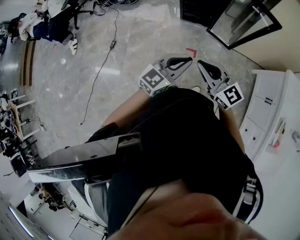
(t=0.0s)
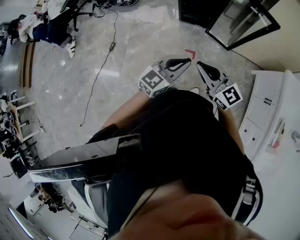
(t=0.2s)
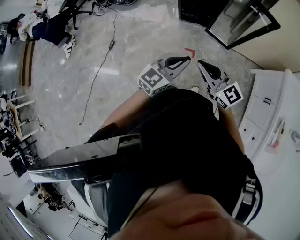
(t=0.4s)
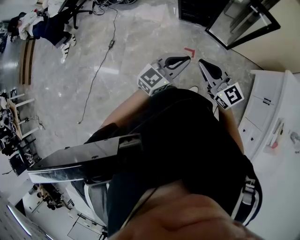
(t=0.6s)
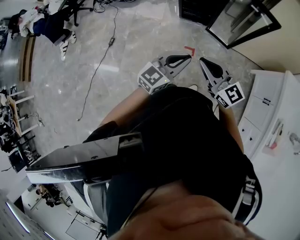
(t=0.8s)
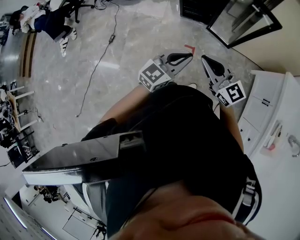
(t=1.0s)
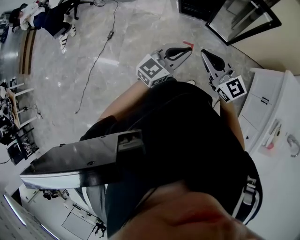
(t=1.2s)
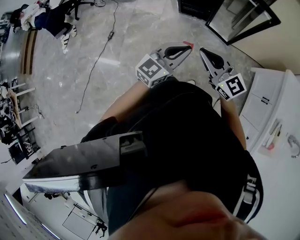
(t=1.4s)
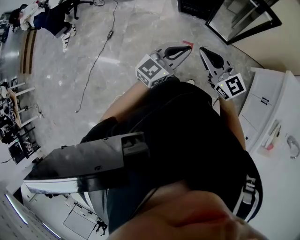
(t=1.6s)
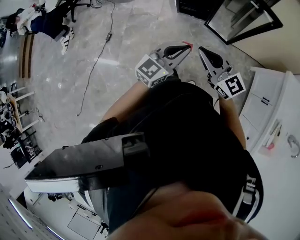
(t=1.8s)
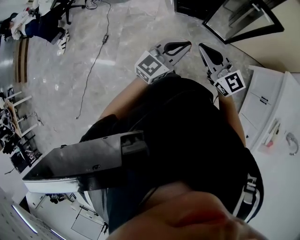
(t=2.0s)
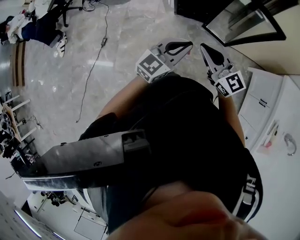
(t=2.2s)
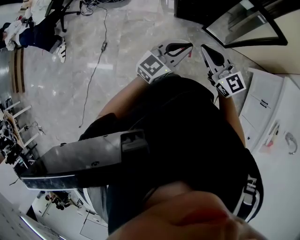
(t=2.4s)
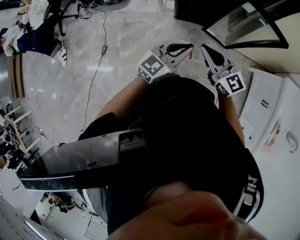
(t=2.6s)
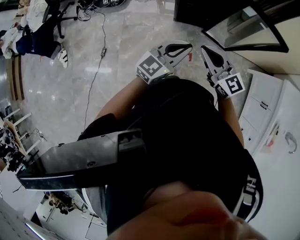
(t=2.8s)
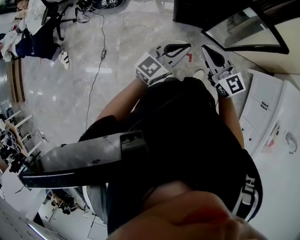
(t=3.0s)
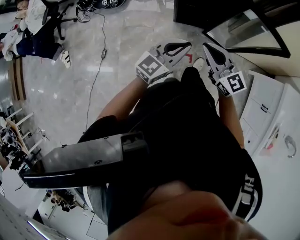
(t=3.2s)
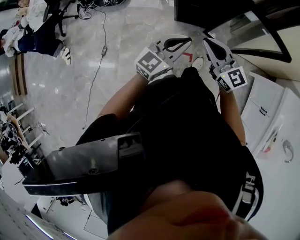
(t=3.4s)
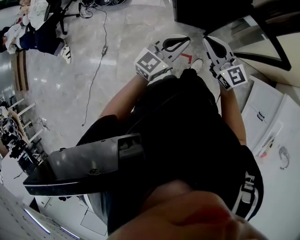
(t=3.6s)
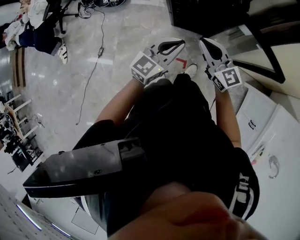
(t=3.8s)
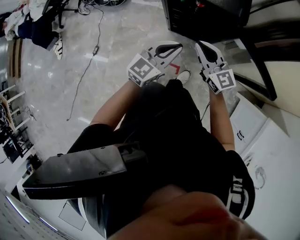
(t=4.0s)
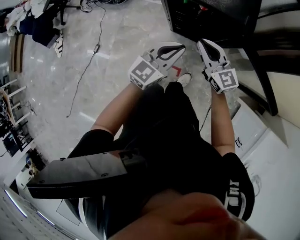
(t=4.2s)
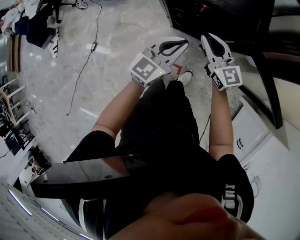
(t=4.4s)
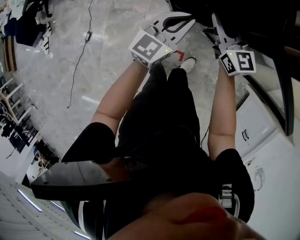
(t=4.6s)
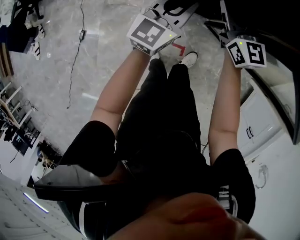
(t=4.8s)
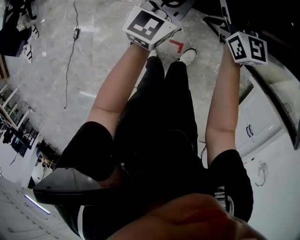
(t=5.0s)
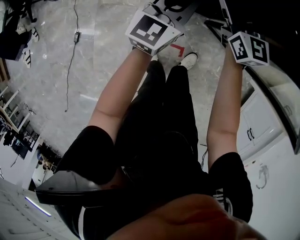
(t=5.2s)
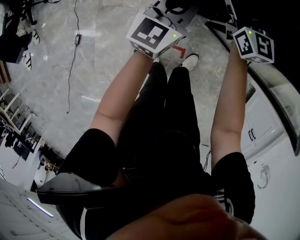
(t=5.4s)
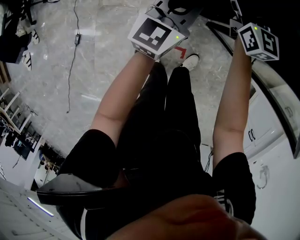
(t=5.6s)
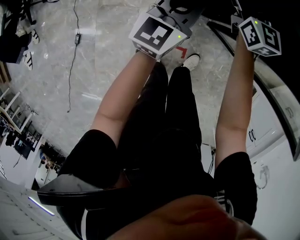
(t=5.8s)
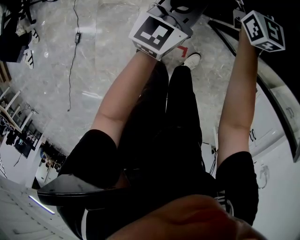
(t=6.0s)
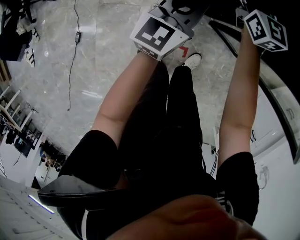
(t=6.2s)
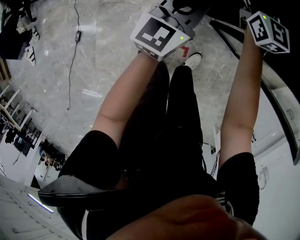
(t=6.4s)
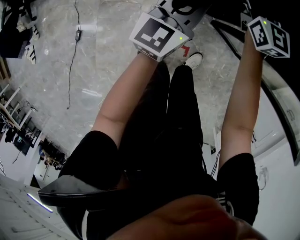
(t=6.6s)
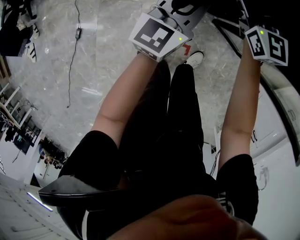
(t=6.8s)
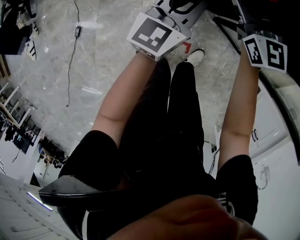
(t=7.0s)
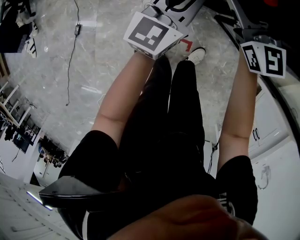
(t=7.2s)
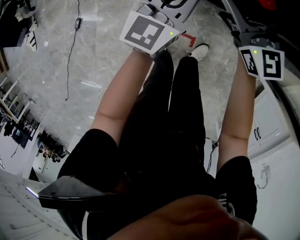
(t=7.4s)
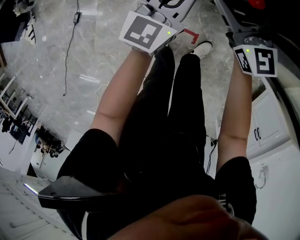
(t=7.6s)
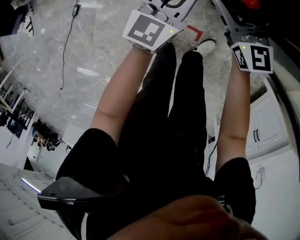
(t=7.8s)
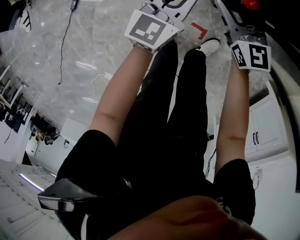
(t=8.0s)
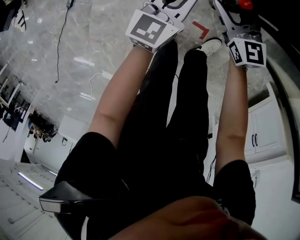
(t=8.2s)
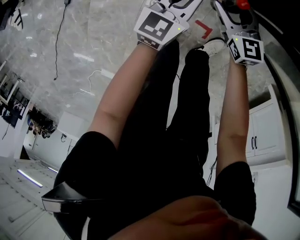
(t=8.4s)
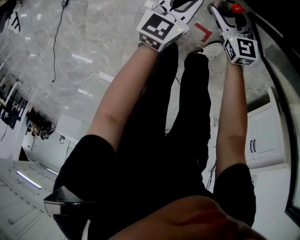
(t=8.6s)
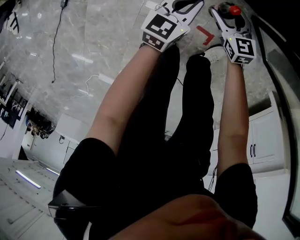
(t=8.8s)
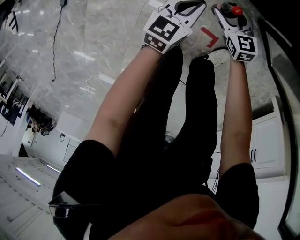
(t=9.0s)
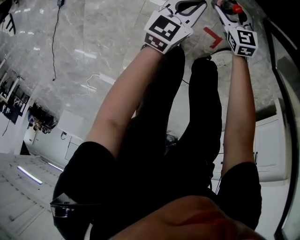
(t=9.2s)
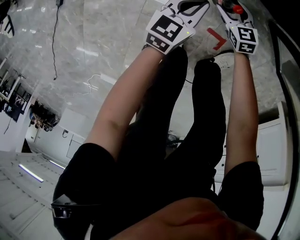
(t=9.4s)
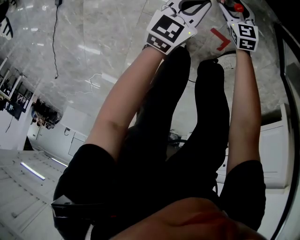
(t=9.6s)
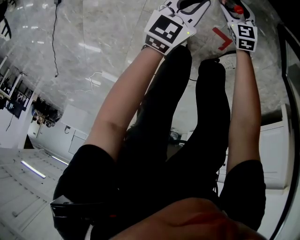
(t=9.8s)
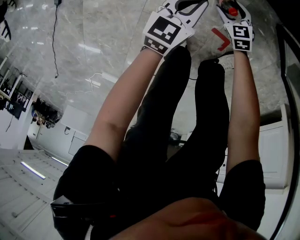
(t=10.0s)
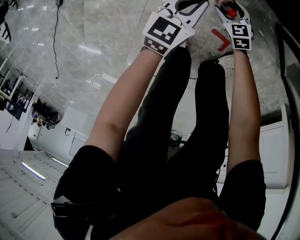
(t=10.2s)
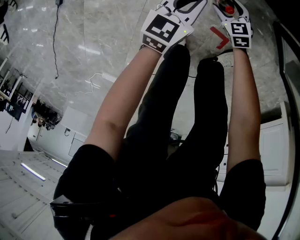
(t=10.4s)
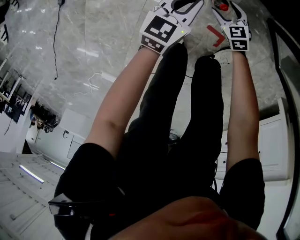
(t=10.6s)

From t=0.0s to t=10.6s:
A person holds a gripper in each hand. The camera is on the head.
From t=0.0s to t=1.6s: Both grippers move to the right, about 10 cm.
From t=1.6s to t=3.0s: Both grippers travel together forward and to the left, approximately 25 cm.
From t=3.0s to t=4.6s: Both grippers move forward and downward, some 40 cm.
From t=4.6s to t=6.0s: The left gripper travels downward and forward by some 10 cm. Meanwhile the right gripper goes approximately 15 cm forward and downward, and opens.
From t=6.0s to t=7.6s: The right gripper goes roughly 20 cm backward and to the left. The left gripper travels to the left, backward and downward by some 15 cm.
From t=7.6s to t=9.0s: The grippers both shift downward by some 40 cm. The right gripper rotates some 30 degrees; the left gripper rotates about 20 degrees.
From t=9.0s to t=10.6s: The left gripper travels downward and back again, some 10 cm each way. Meanwhile the right gripper travels downward by some 10 cm.

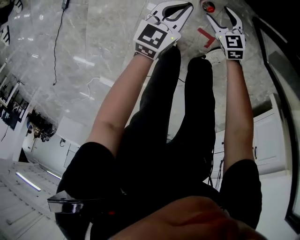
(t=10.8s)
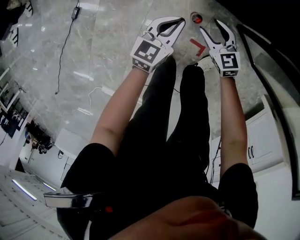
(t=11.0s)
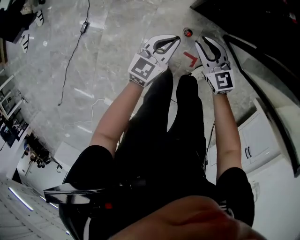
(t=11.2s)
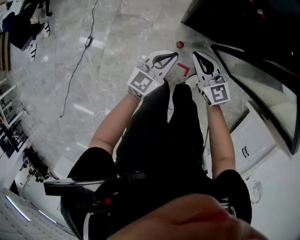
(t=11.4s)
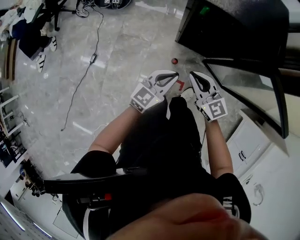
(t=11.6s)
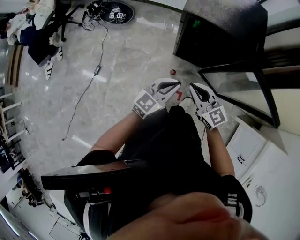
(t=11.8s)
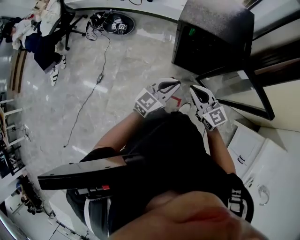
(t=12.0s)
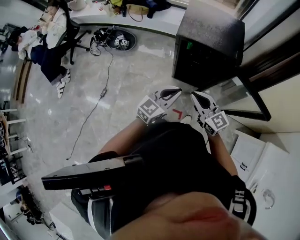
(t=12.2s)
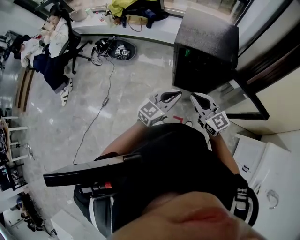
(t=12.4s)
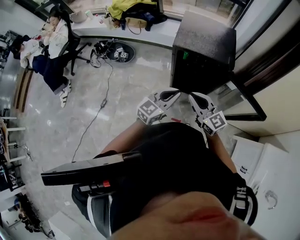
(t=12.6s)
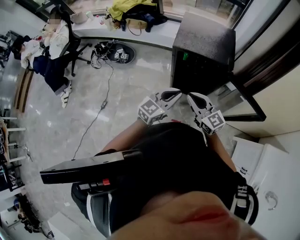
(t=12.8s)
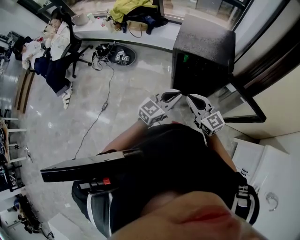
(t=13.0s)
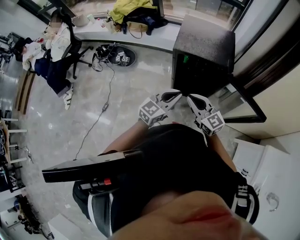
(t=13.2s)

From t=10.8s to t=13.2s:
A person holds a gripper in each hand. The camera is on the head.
From t=10.8s to t=12.0s: Both grippers move upward, roughly 60 cm. The right gripper tips its fingers upward by some 30 degrees, and closes up; the left gripper swivels some 30 degrees.
From t=12.0s to t=13.2s: The grippers both shift upward by approximately 10 cm.

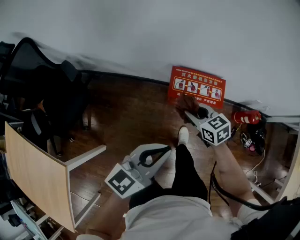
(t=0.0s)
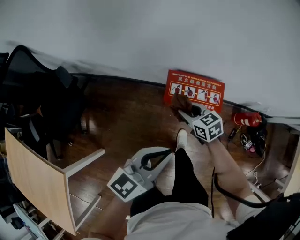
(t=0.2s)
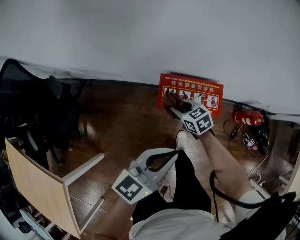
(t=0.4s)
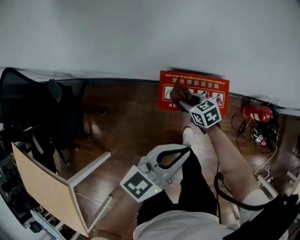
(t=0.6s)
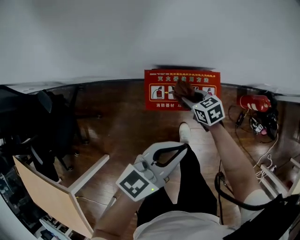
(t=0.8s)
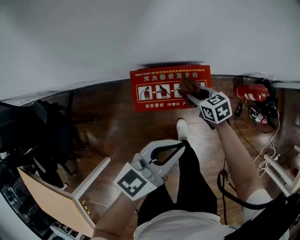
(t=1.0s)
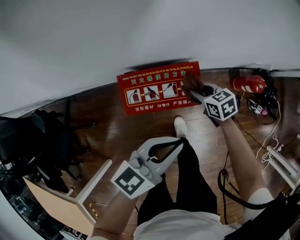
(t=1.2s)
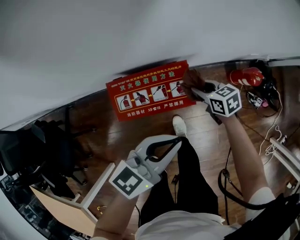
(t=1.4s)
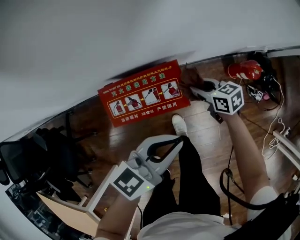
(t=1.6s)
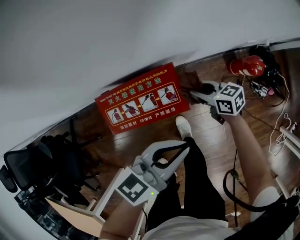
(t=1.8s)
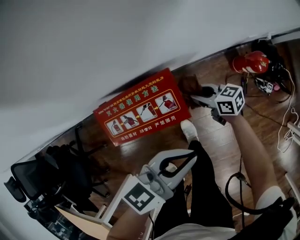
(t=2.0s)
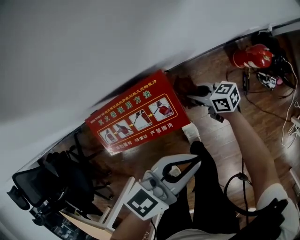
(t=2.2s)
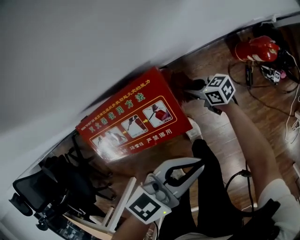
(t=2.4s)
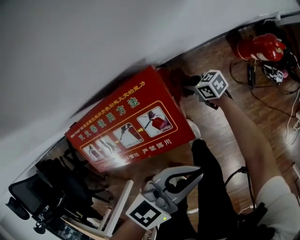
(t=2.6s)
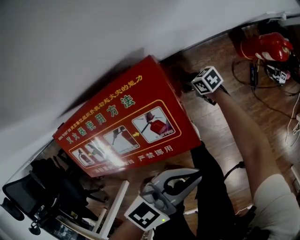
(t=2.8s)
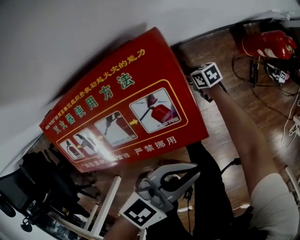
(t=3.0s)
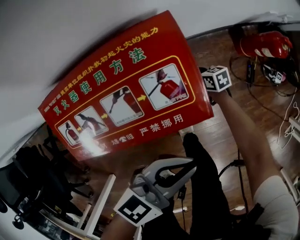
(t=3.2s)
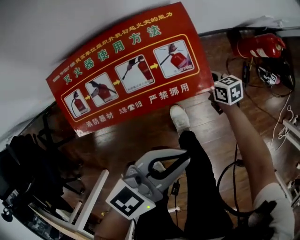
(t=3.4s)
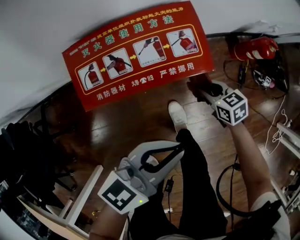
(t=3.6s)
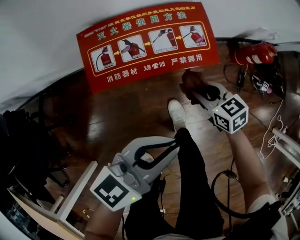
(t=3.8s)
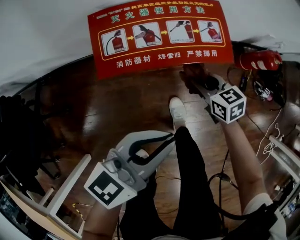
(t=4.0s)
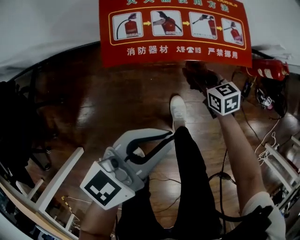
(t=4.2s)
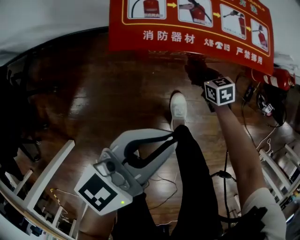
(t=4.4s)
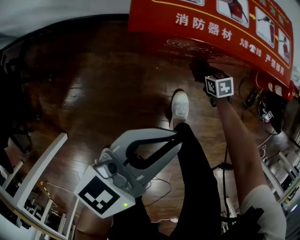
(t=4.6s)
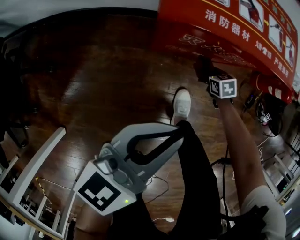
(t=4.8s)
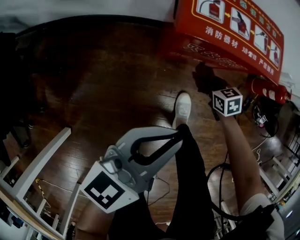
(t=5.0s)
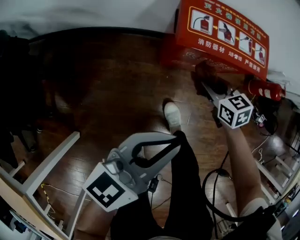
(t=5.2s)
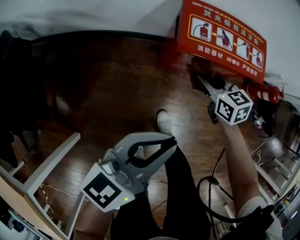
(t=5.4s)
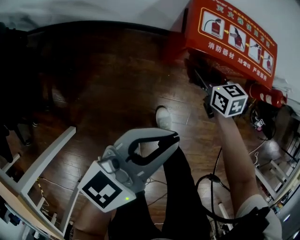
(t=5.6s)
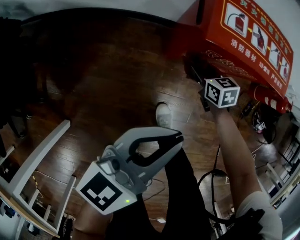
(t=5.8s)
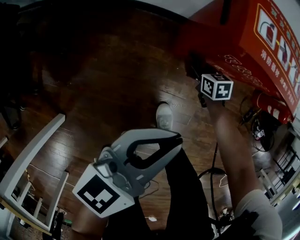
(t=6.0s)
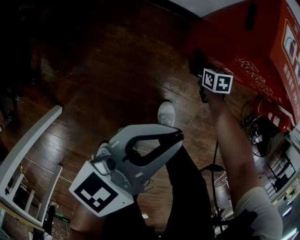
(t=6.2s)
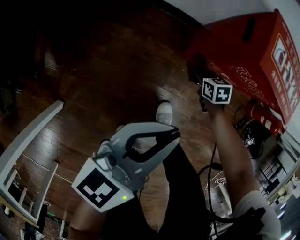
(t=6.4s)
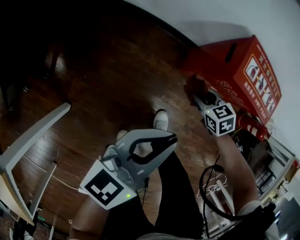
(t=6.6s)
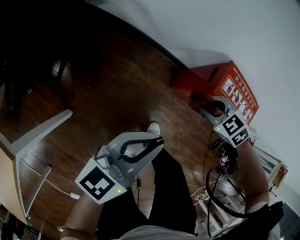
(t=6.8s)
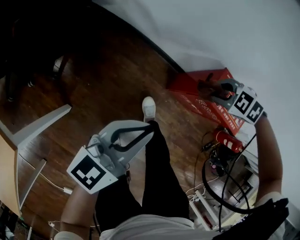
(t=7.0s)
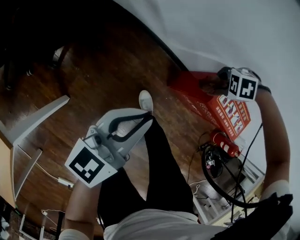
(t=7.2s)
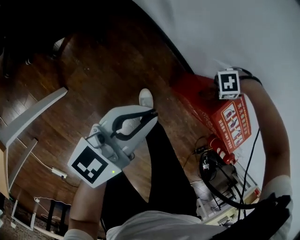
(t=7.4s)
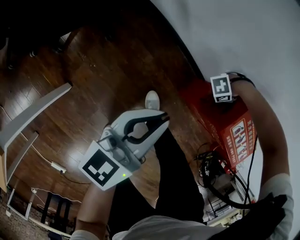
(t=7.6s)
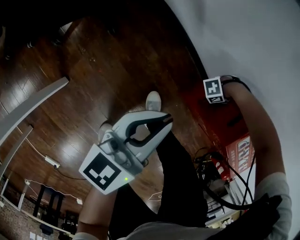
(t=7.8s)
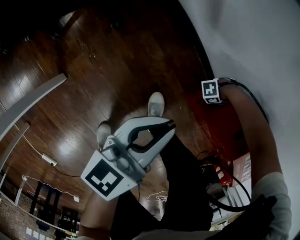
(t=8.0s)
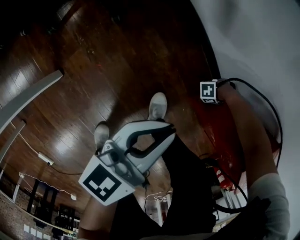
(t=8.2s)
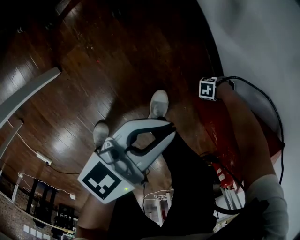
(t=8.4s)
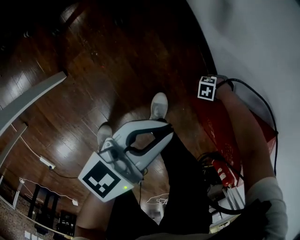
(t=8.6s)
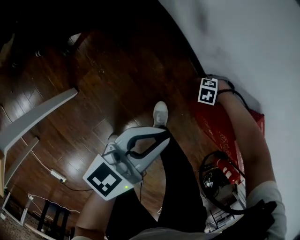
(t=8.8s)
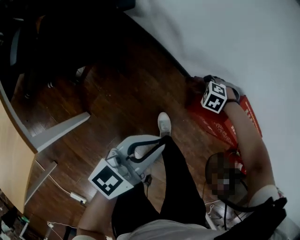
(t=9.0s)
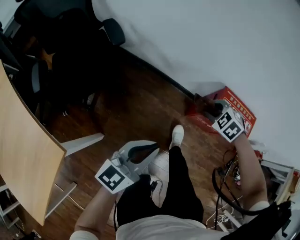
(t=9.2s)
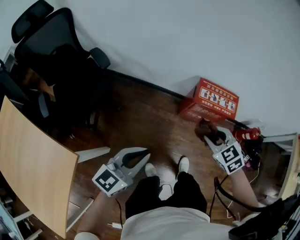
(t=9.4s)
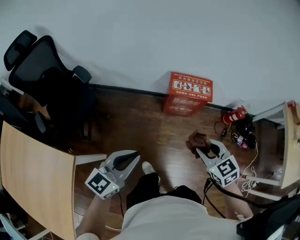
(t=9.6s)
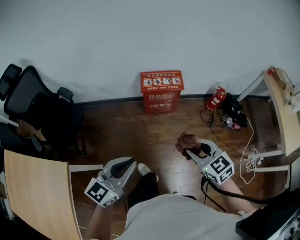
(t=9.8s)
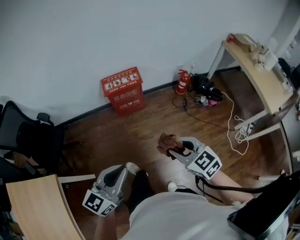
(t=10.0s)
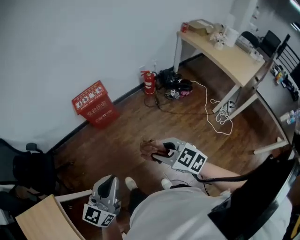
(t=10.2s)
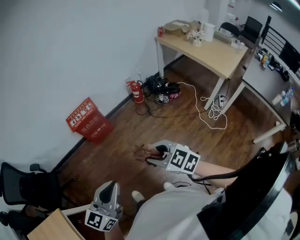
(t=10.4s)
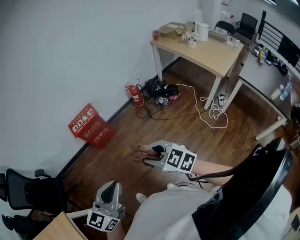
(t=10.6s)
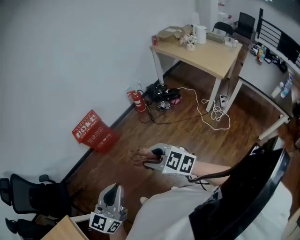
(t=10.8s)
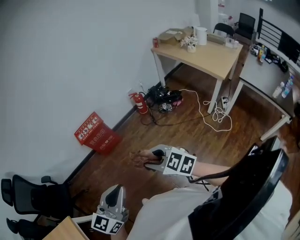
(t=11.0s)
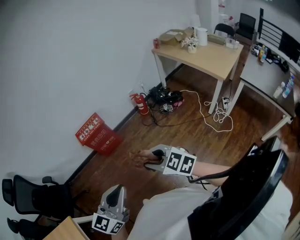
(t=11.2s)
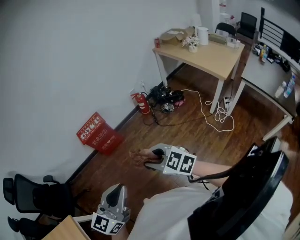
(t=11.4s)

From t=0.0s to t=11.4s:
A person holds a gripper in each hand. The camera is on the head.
From t=0.0s to t=1.4s: The left gripper moves to the right, forward and downward, approximately 30 cm, and rotates about 20 degrees. The right gripper heads to the right, downward and forward, covering about 35 cm, and rotates some 30 degrees.
From t=1.4s to t=2.8s: The right gripper goes approximately 40 cm downward; the left gripper is displaced downward by about 20 cm, and swivels about 20 degrees.
From t=2.8s to t=4.2s: The right gripper is displaced upward by approximately 15 cm, and swivels about 30 degrees. Meanwhile the left gripper moves some 20 cm, and turns by some 30 degrees.
From t=4.2s to t=5.6s: The right gripper moves up and down over about 30 cm, changing direction 2 times, while the left gripper is displaced to the left by about 10 cm.
From t=5.6s to t=7.2s: The right gripper goes up and down, approximately 40 cm each way, reversing 2 times, and swivels roughly 120 degrees; the left gripper changes place by approximately 20 cm, and rotates roughly 30 degrees.
From t=7.2s to t=8.6s: The left gripper heads downward, covering some 15 cm, and rotates about 20 degrees. The right gripper is displaced downward by some 40 cm, and turns by about 20 degrees.
From t=8.6s to t=10.0s: The two grippers travel together, approximately 60 cm. The left gripper changes its angle by approximately 60 degrees. Meanwhile the right gripper is displaced upward by roughly 70 cm, and tilts its fingers roughly 30 degrees upward.
From t=10.0s to t=11.4s: The left gripper shifts some 20 cm to the right and backward. The right gripper goes approximately 15 cm backward, to the right and upward.
